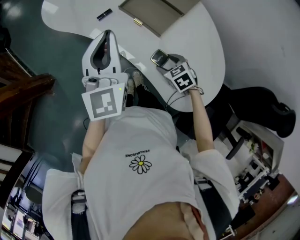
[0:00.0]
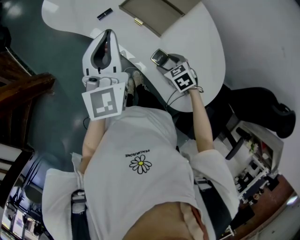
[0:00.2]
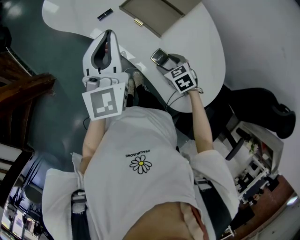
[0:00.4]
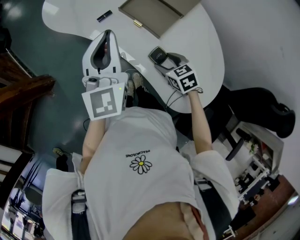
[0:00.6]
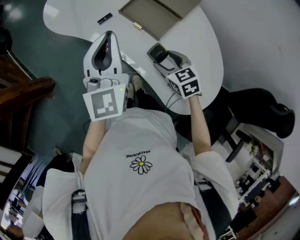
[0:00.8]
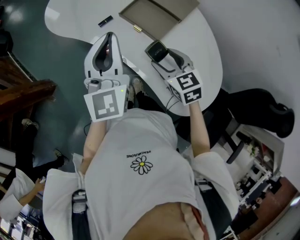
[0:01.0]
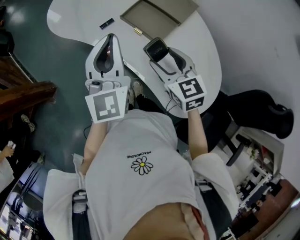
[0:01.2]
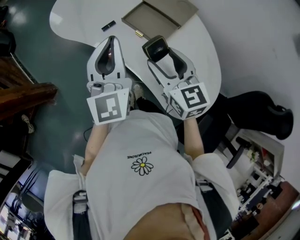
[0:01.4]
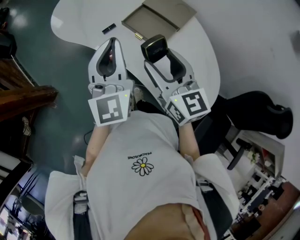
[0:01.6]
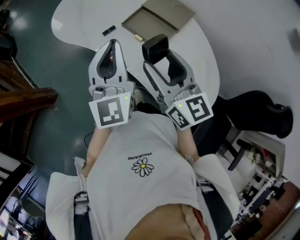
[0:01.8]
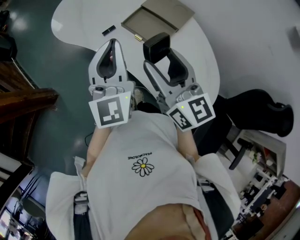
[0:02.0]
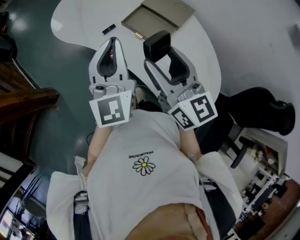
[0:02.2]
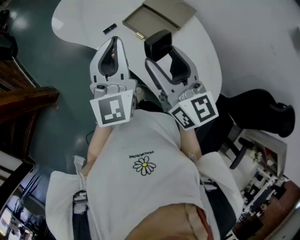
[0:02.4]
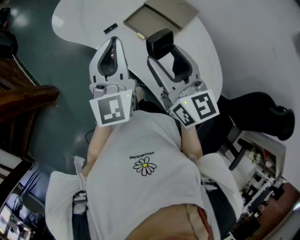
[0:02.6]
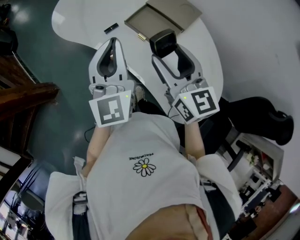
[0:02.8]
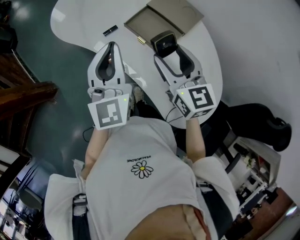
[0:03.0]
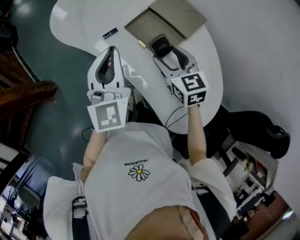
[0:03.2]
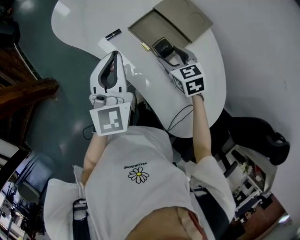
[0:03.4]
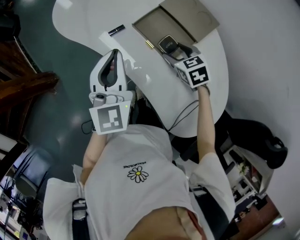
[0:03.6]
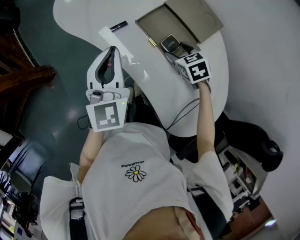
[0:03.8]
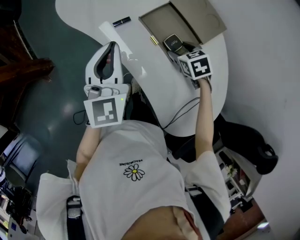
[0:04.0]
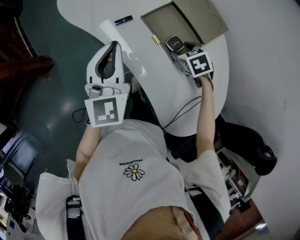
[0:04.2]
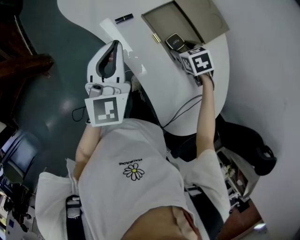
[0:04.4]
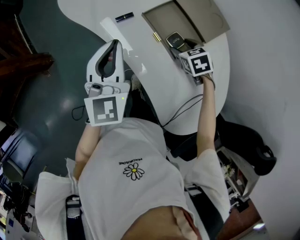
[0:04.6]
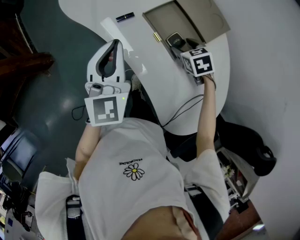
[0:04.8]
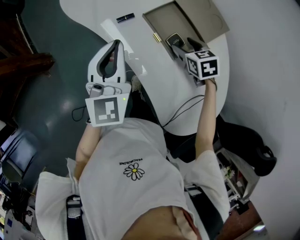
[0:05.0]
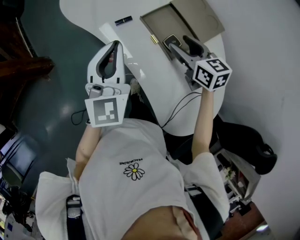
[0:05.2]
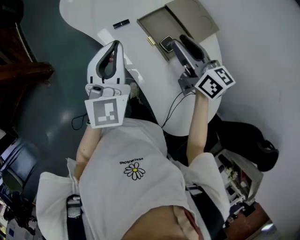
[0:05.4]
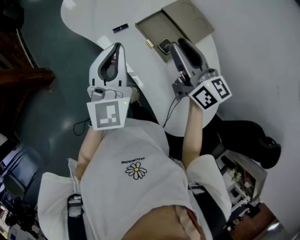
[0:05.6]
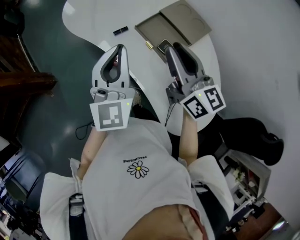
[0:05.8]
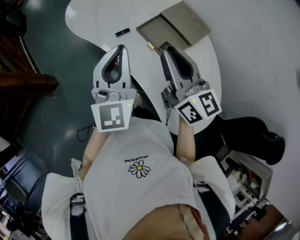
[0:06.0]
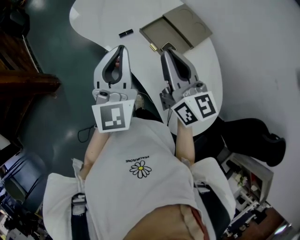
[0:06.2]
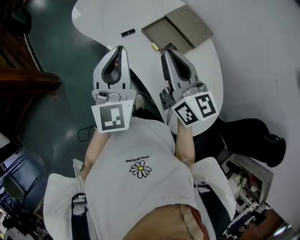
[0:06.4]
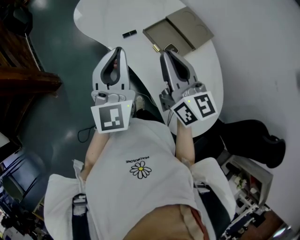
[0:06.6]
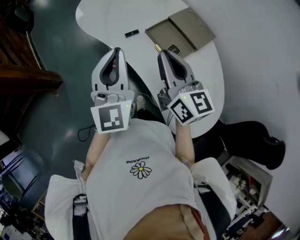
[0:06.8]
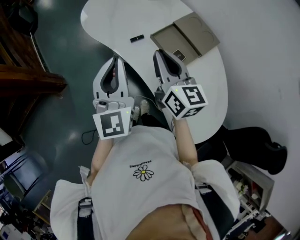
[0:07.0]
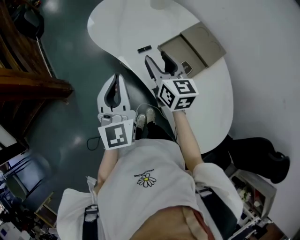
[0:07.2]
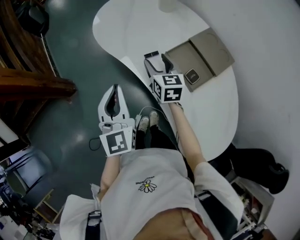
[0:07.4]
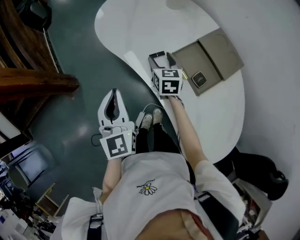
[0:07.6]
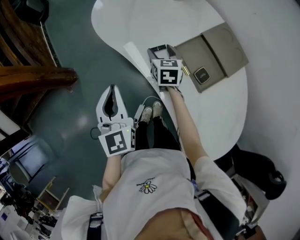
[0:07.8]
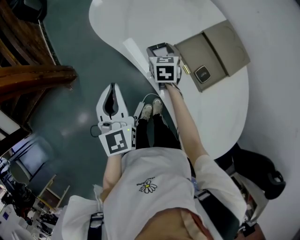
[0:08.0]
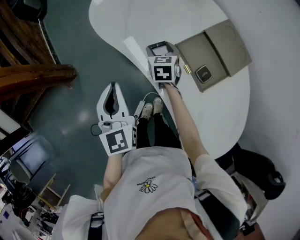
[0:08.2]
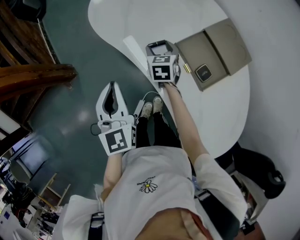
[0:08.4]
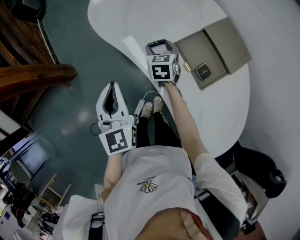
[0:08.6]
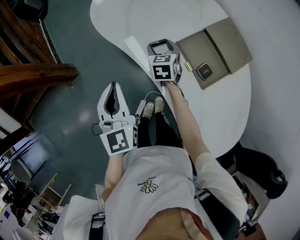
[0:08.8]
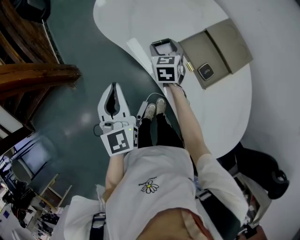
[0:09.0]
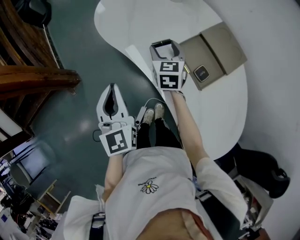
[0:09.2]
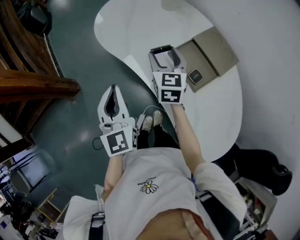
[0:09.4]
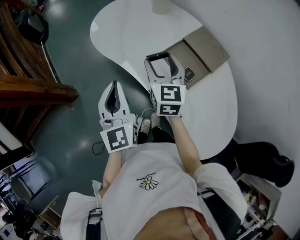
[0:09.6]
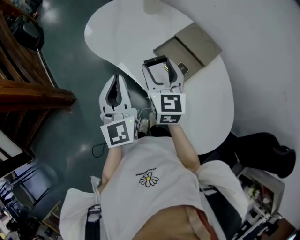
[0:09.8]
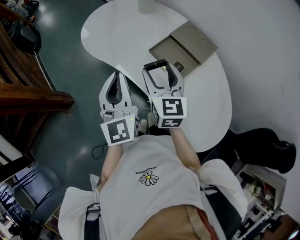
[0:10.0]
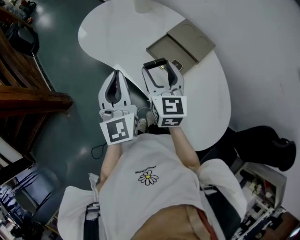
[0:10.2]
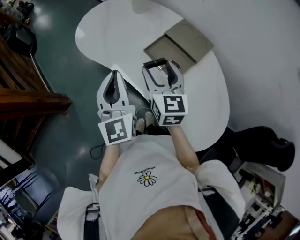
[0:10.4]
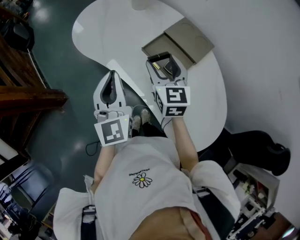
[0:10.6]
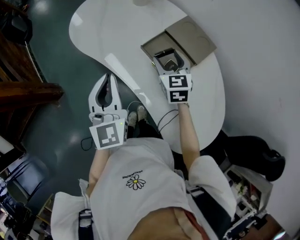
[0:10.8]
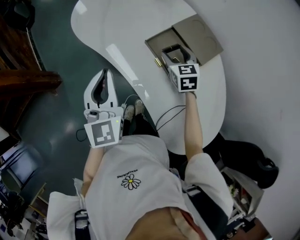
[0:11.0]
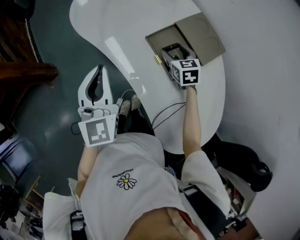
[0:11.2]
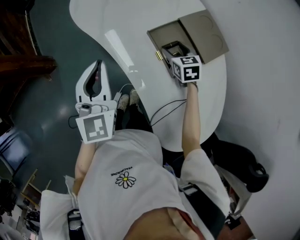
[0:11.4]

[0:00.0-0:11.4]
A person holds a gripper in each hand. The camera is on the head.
0:00.0 to 0:01.4: The right gripper heads upward, covering about 25 cm, and points its fingers roughly 40 degrees further upward.
0:02.8 to 0:04.2: The left gripper goes approximately 10 cm downward and forward. Meanwhile the right gripper heads downward, covering some 25 cm, and tips its fingers downward by roughly 60 degrees.
0:04.2 to 0:05.6: The left gripper moves upward, about 5 cm. Meanwhile the right gripper travels upward by roughly 25 cm, tips its fingers upward by approximately 60 degrees, and closes.
0:05.6 to 0:07.2: The left gripper moves to the left, some 10 cm. The right gripper is displaced to the left, downward and forward by about 15 cm, and closes, then reopens.
0:07.2 to 0:08.6: The left gripper heads downward, covering approximately 10 cm. The right gripper heads downward and forward, covering about 25 cm, and changes its angle by approximately 30 degrees.
0:08.6 to 0:10.0: The right gripper goes roughly 30 cm upward and backward, and changes its angle by about 30 degrees. The left gripper goes roughly 15 cm upward and to the right.
0:10.0 to 0:11.4: The left gripper shifts about 5 cm downward, while the right gripper is displaced downward, to the right and forward by approximately 25 cm, and angles its fingers downward, by approximately 30 degrees.

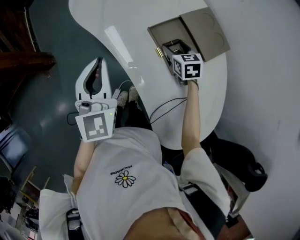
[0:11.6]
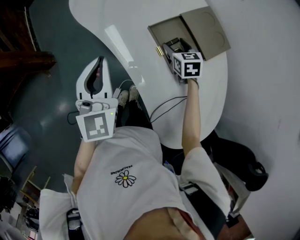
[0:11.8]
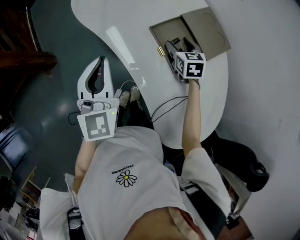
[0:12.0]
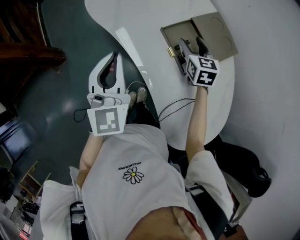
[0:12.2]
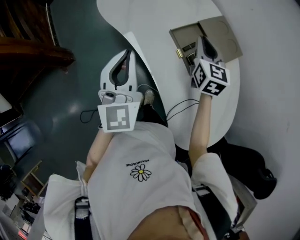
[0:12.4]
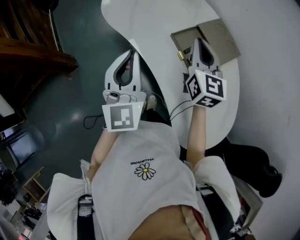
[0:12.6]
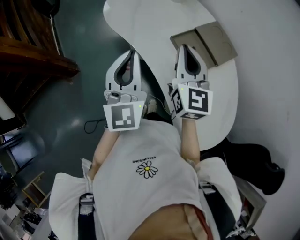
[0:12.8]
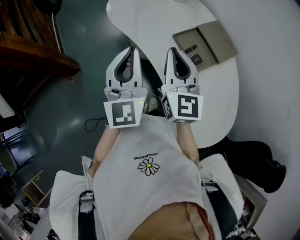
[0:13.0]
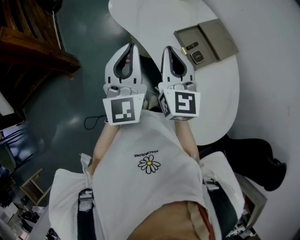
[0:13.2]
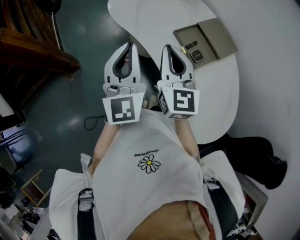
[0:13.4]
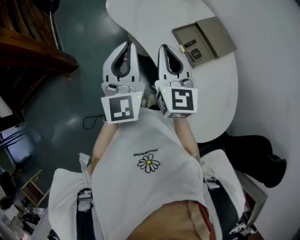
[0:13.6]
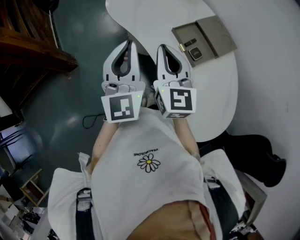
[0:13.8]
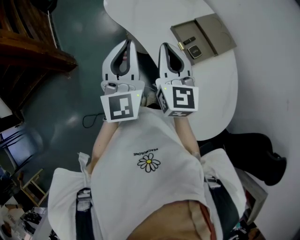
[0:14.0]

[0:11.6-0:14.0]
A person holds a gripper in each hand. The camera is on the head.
0:11.6 to 0:12.8: The right gripper goes about 30 cm upward and to the left, points its fingers roughly 40 degrees further upward, and closes, while the left gripper goes approximately 10 cm upward.
0:12.8 to 0:14.0: The right gripper goes approximately 5 cm to the left.

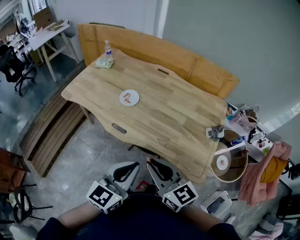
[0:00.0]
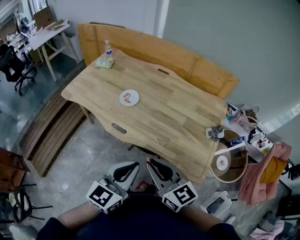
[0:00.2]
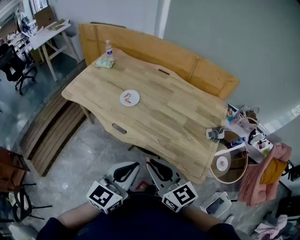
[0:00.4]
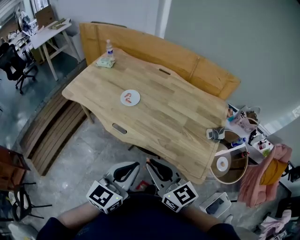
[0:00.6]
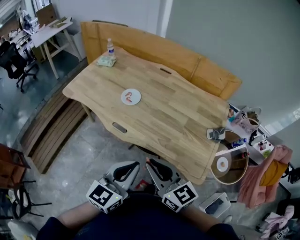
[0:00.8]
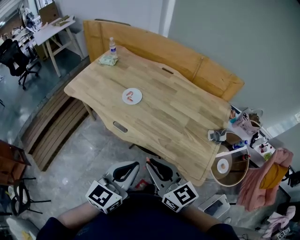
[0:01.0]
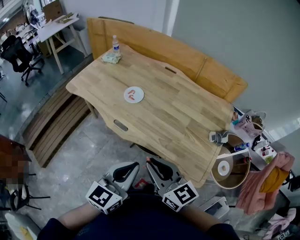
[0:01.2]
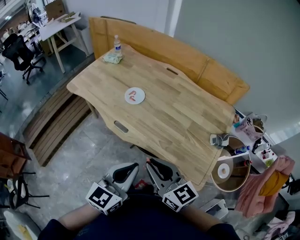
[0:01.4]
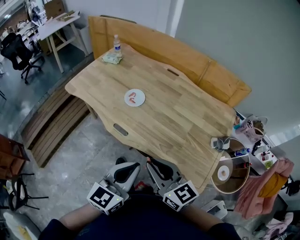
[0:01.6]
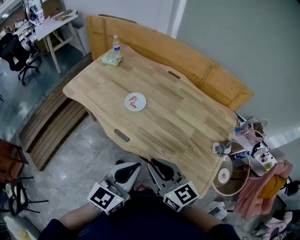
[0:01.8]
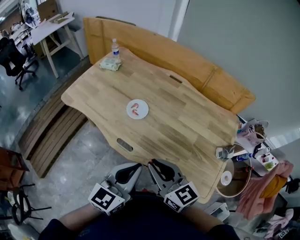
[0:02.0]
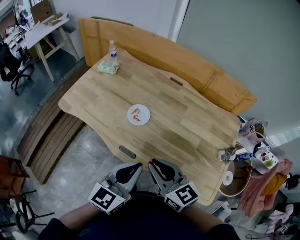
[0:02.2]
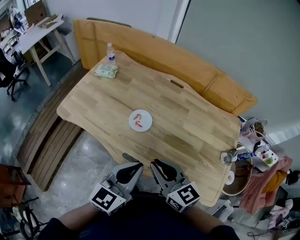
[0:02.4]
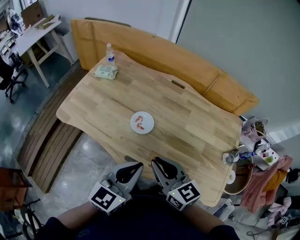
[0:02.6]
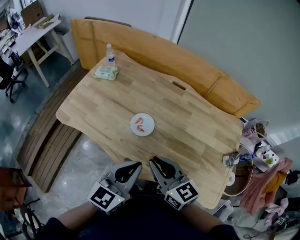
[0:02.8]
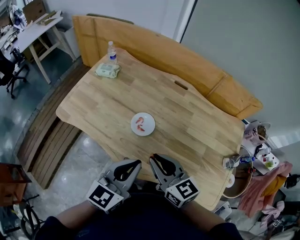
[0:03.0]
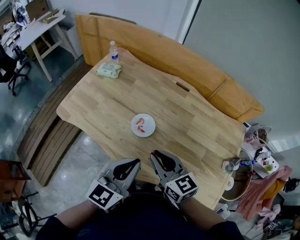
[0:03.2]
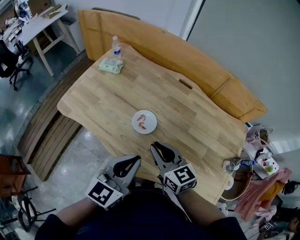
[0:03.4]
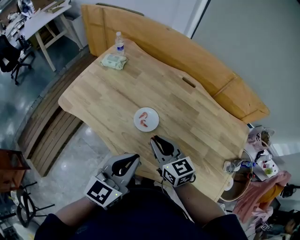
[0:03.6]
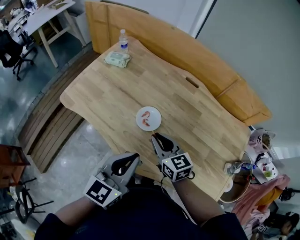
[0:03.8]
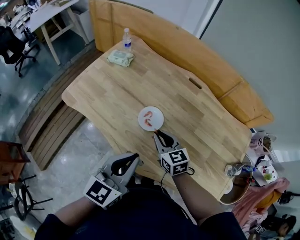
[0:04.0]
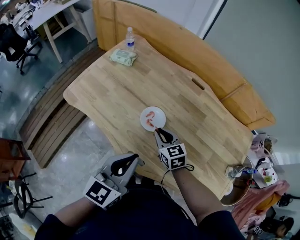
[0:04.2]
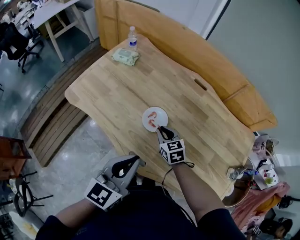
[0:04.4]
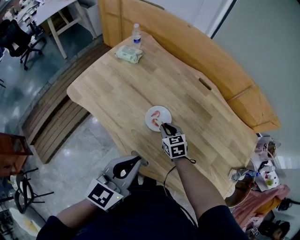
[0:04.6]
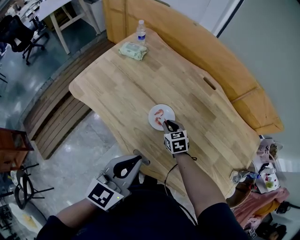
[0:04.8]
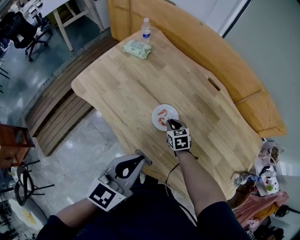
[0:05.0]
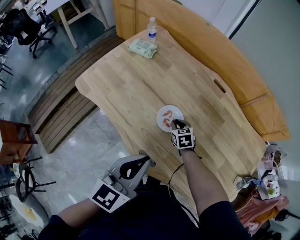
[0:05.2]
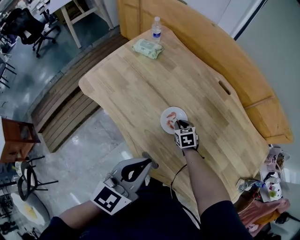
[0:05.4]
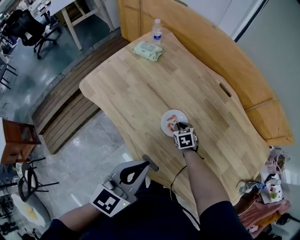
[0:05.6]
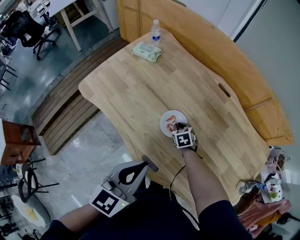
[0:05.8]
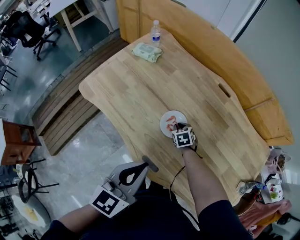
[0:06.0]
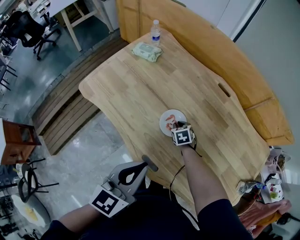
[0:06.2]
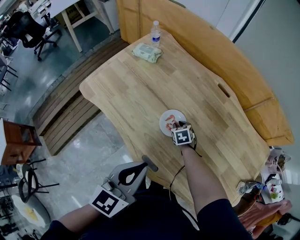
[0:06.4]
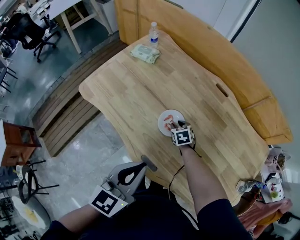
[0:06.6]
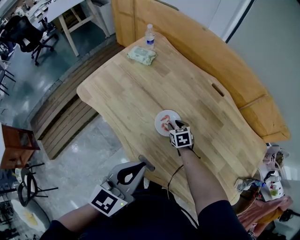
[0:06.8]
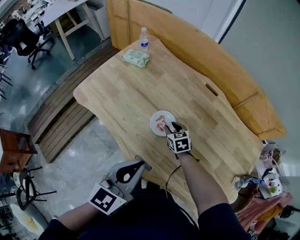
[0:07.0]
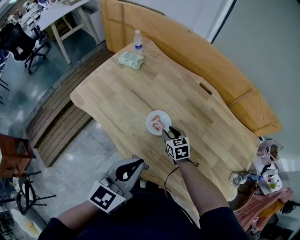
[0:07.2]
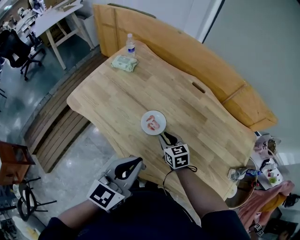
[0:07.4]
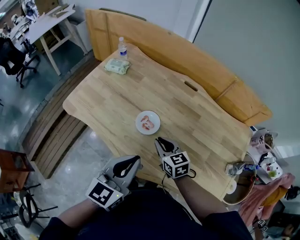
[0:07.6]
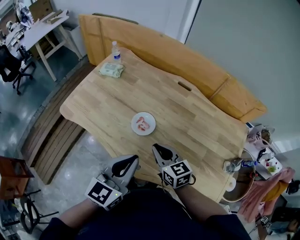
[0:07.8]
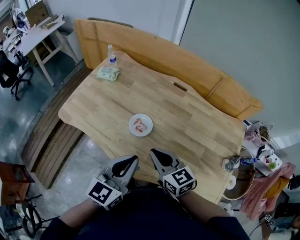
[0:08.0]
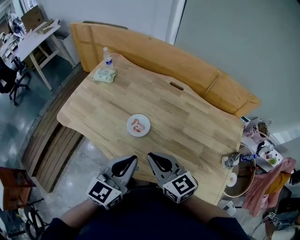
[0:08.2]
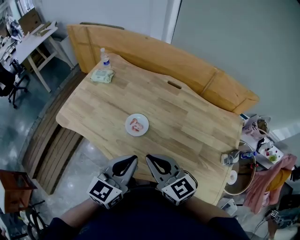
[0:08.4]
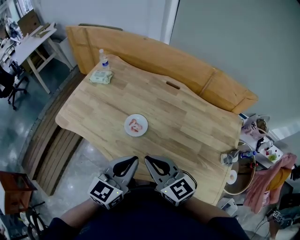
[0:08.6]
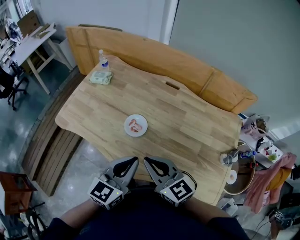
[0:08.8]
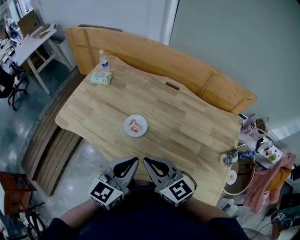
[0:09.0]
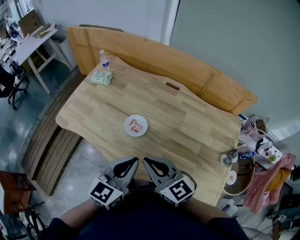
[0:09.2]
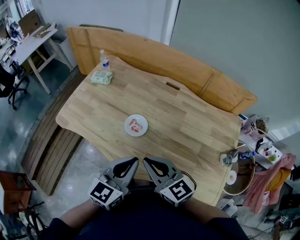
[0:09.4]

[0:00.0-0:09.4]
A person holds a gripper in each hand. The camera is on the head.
0:00.0 to 0:01.6: The left gripper shifts by roughly 5 cm, while the right gripper shifts some 5 cm forward.
0:01.6 to 0:03.2: The left gripper shifts roughly 30 cm forward and to the left. The right gripper shifts about 30 cm forward.
0:03.2 to 0:04.8: The right gripper goes about 30 cm downward and forward, and turns by some 30 degrees; the left gripper ends up about 5 cm from where it was.
0:04.8 to 0:06.2: The right gripper travels downward by some 10 cm.
0:06.2 to 0:07.8: The right gripper moves upward and backward, some 30 cm, and tips its fingers upward by approximately 40 degrees; the left gripper moves to the right and upward, approximately 10 cm.
0:07.8 to 0:09.4: The right gripper is displaced upward and backward by some 15 cm.
